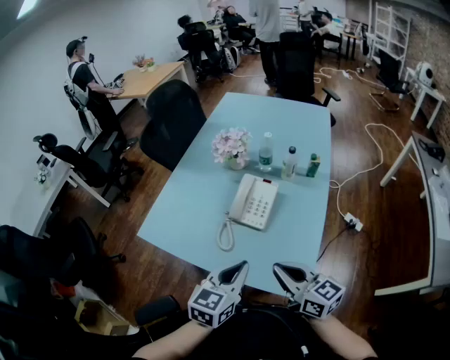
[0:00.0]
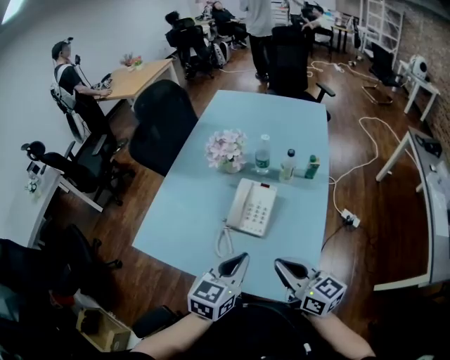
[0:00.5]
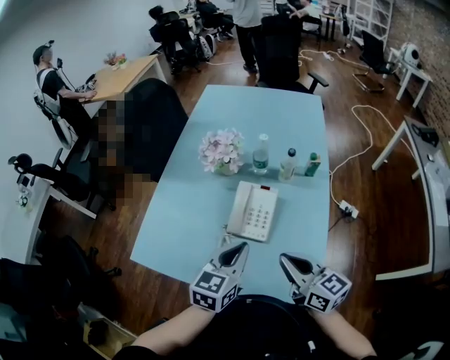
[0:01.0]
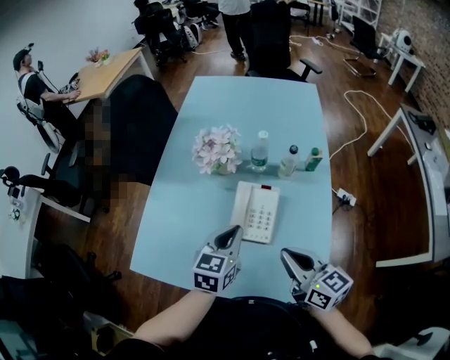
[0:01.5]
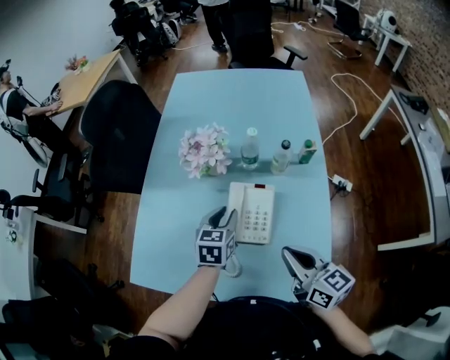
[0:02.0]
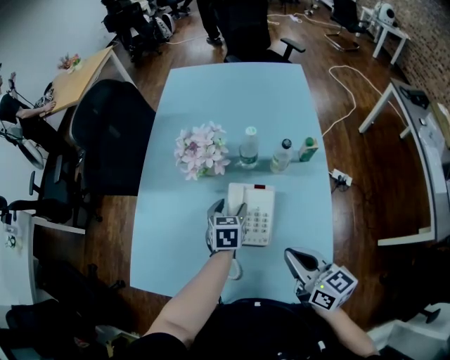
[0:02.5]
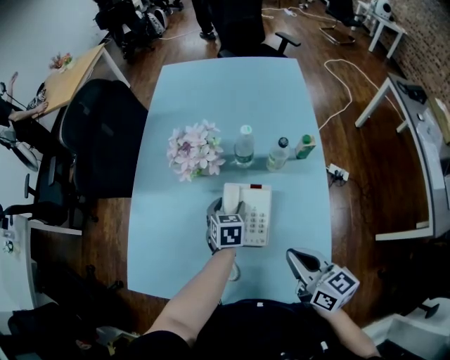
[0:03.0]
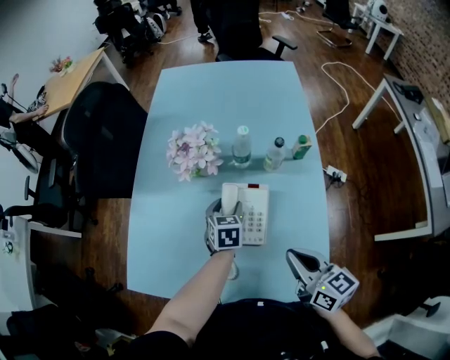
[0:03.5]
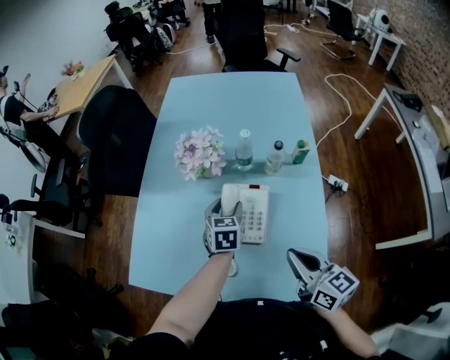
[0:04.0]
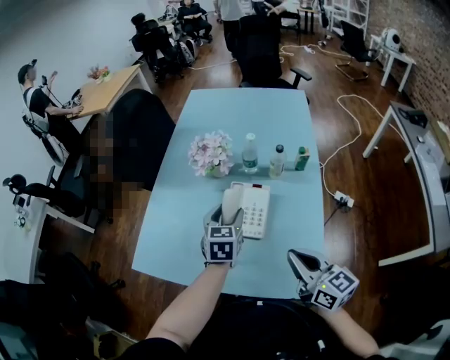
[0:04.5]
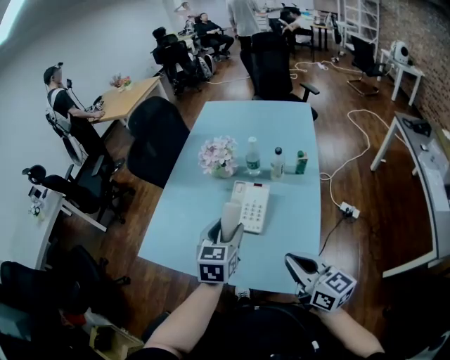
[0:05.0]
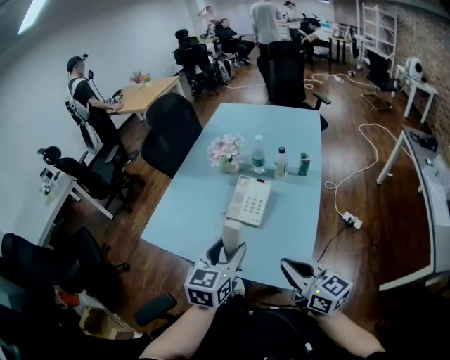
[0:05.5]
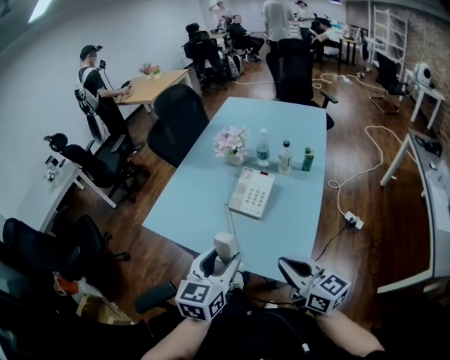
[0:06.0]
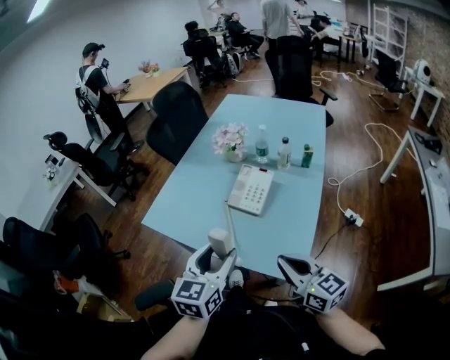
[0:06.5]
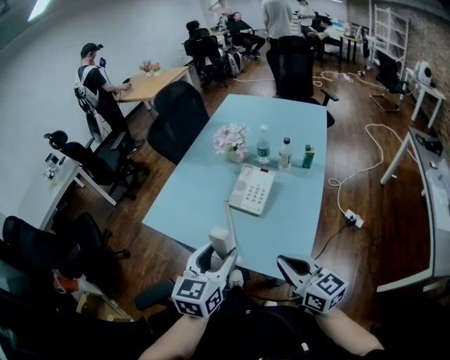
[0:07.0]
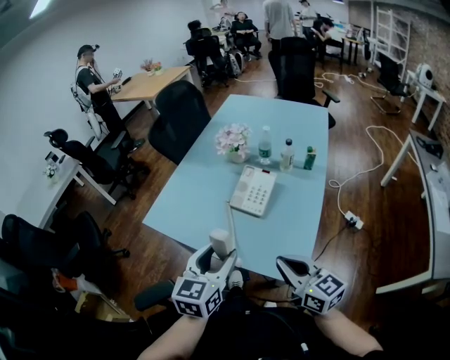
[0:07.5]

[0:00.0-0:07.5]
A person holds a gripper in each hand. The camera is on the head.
0:00.0 to 0:02.0: The left gripper goes roughly 30 cm forward. Meanwhile the right gripper travels forward by about 15 cm, and rotates approximately 20 degrees.
0:02.0 to 0:04.0: The left gripper moves some 10 cm downward and comes back, and opens its fingers.
0:04.0 to 0:05.5: The right gripper heads backward, covering some 15 cm, and rotates about 20 degrees, while the left gripper travels backward and upward by some 35 cm.
0:05.5 to 0:07.5: The left gripper is displaced backward by roughly 5 cm.

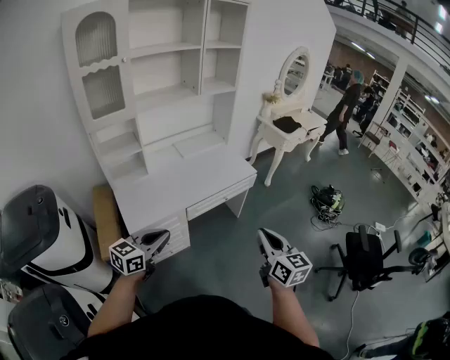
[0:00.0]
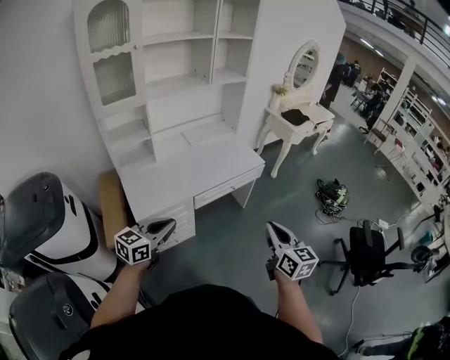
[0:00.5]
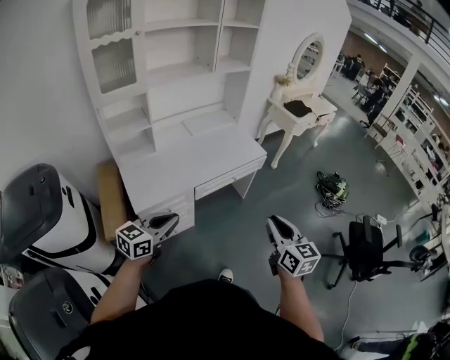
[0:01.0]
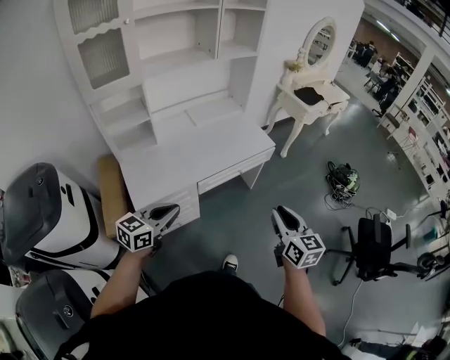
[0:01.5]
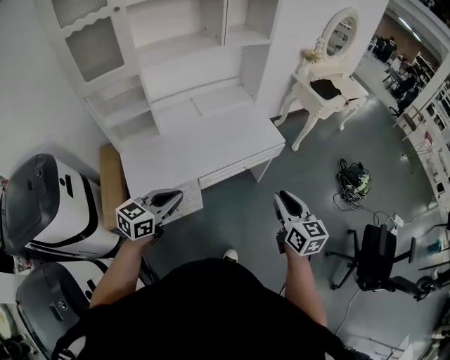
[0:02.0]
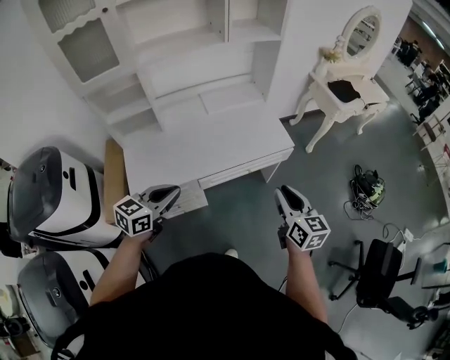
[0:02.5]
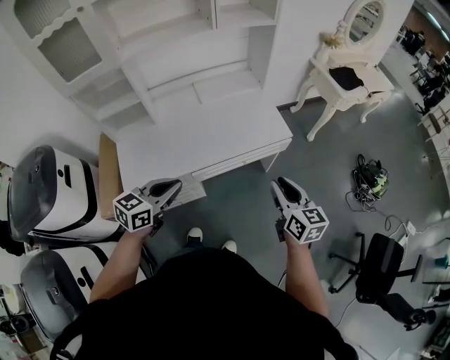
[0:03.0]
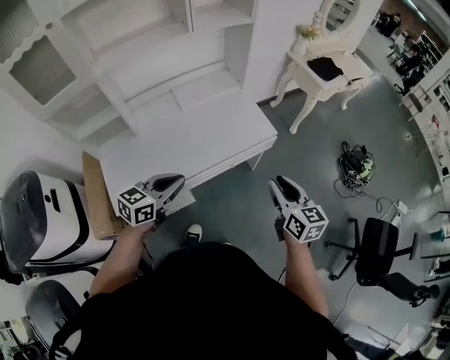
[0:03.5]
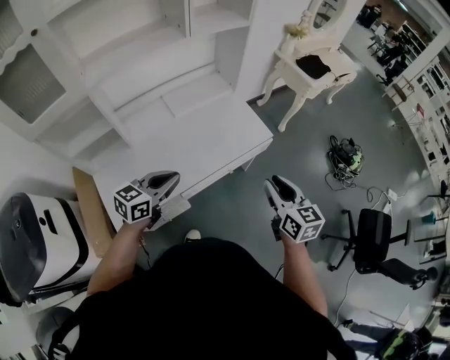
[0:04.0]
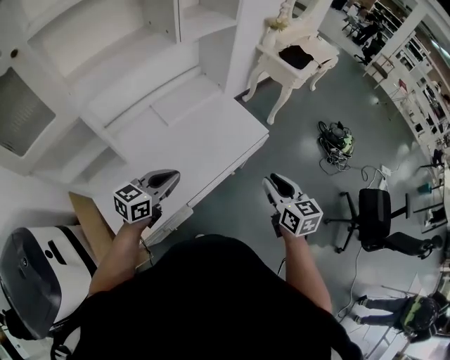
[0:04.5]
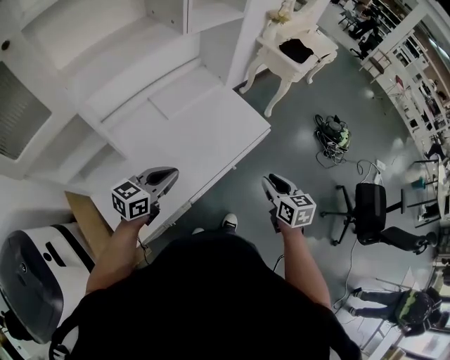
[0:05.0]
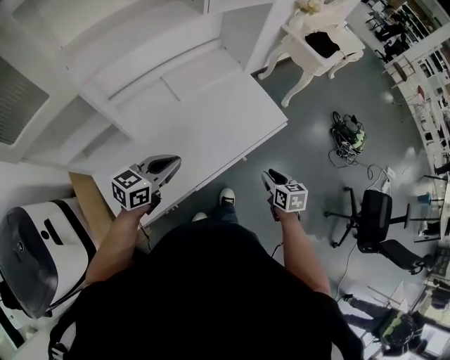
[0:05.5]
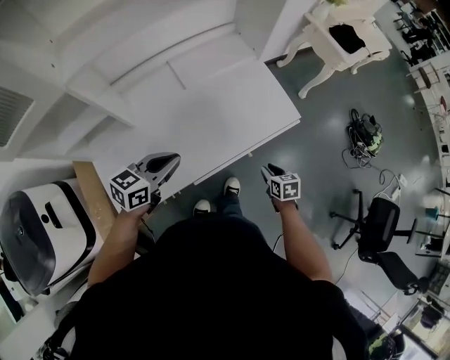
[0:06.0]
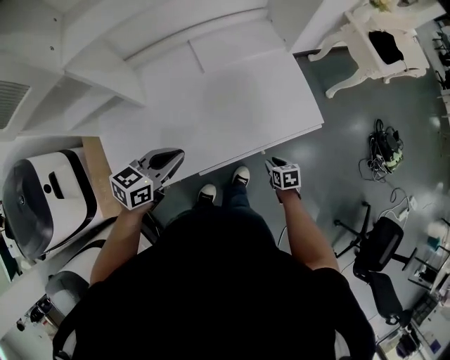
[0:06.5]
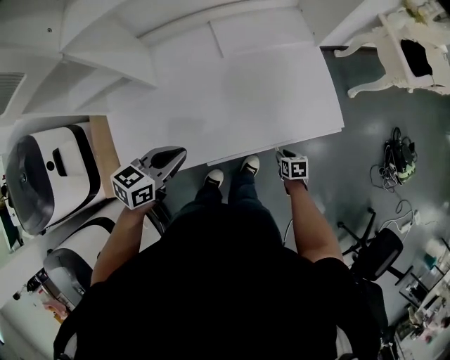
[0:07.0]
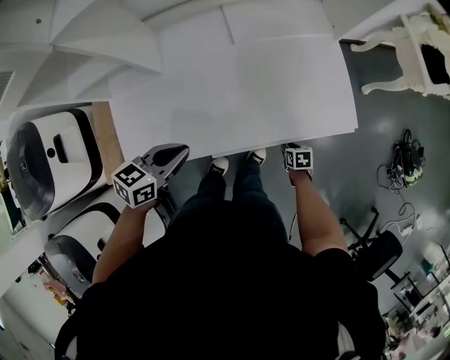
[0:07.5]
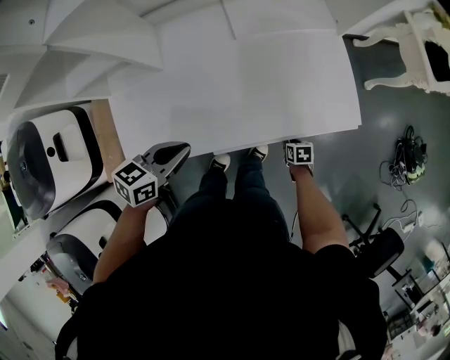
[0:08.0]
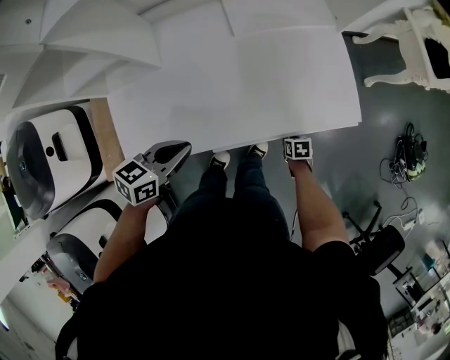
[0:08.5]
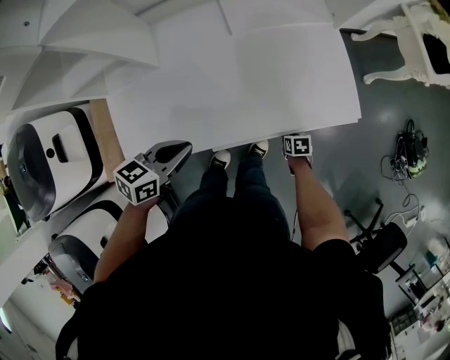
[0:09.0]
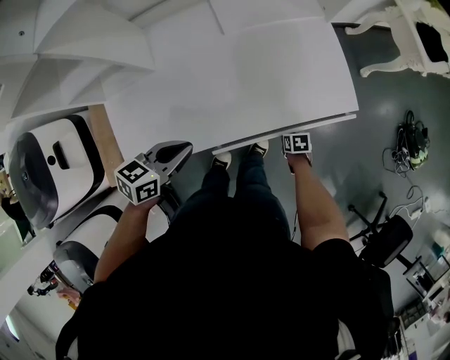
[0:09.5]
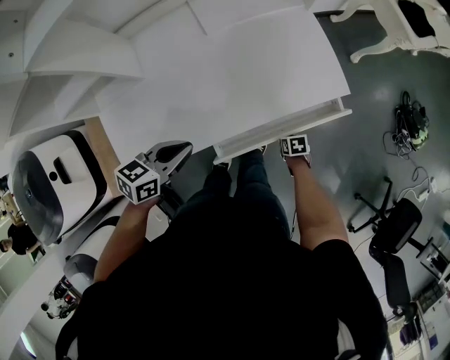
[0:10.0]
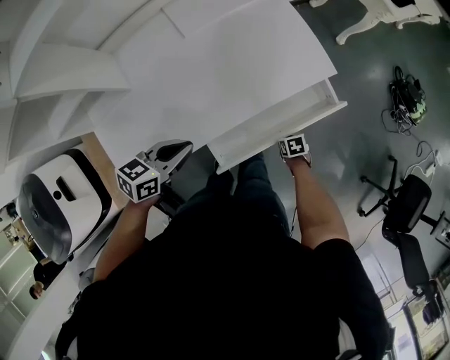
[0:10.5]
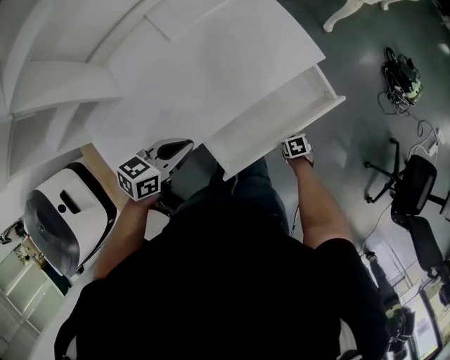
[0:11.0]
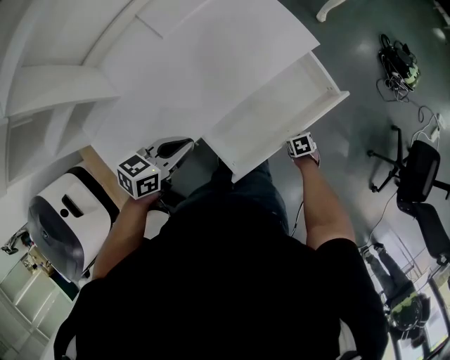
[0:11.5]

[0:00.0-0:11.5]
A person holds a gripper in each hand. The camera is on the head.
0:00.0 to 0:02.0: The two grippers go roughly 15 cm forward.
0:02.0 to 0:04.0: The grippers both shift forward by some 20 cm.
0:04.0 to 0:06.0: The left gripper heads forward, to the left and downward, covering roughly 15 cm, while the right gripper shifts roughly 30 cm downward, and points its fingers roughly 30 degrees further downward.
0:06.0 to 0:07.5: The left gripper moves downward, some 5 cm, and rotates some 20 degrees, while the right gripper heads downward, covering approximately 20 cm, and rotates roughly 20 degrees.
0:07.5 to 0:09.5: The grippers move only a little.
0:09.5 to 0:11.5: The left gripper ends up approximately 10 cm from where it was, and swivels roughly 20 degrees. Meanwhile the right gripper ends up about 20 cm from where it was.

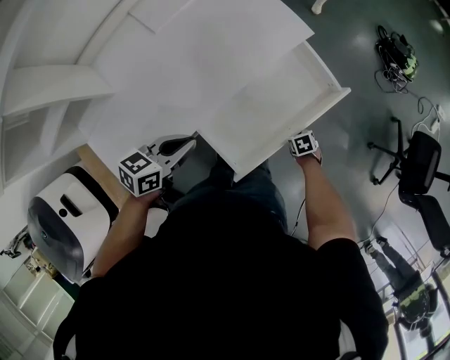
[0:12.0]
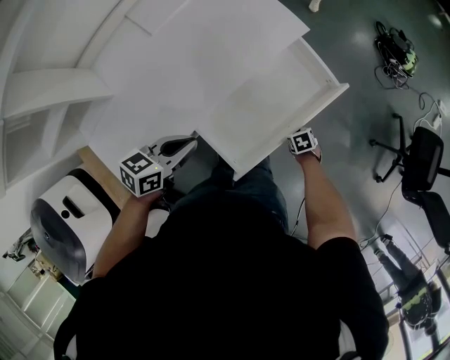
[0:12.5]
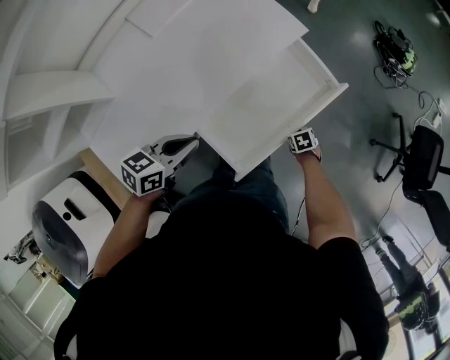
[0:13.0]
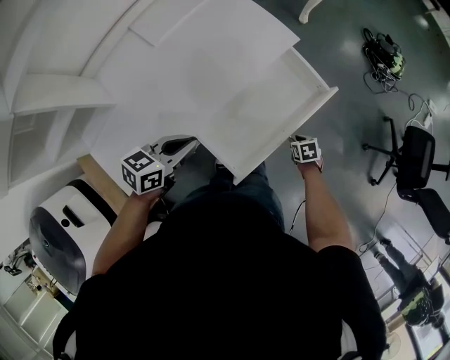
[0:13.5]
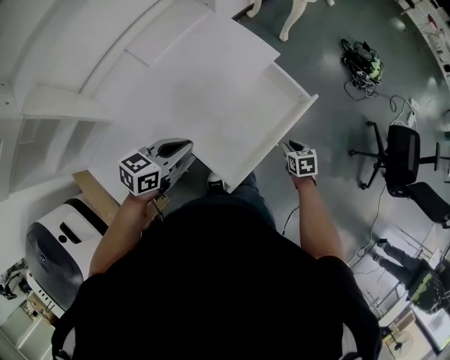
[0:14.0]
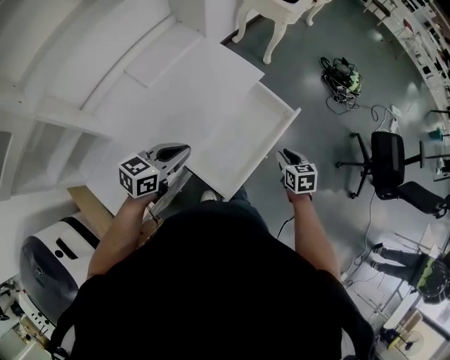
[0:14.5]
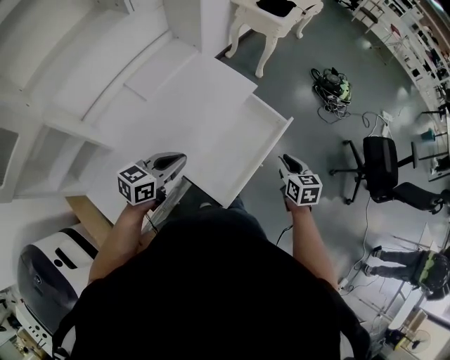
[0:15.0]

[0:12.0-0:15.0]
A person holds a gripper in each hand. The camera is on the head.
0:12.0 to 0:13.5: The right gripper is displaced upward by approximately 5 cm.
0:13.5 to 0:15.0: The right gripper goes roughly 30 cm upward, and tilts its fingers some 30 degrees upward; the left gripper travels upward by some 10 cm.

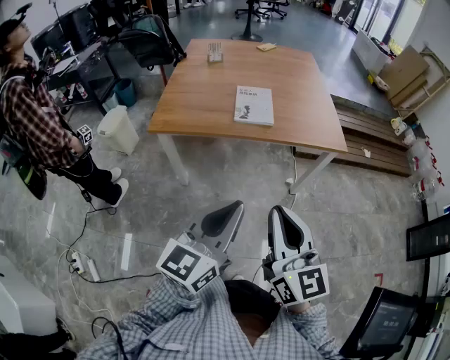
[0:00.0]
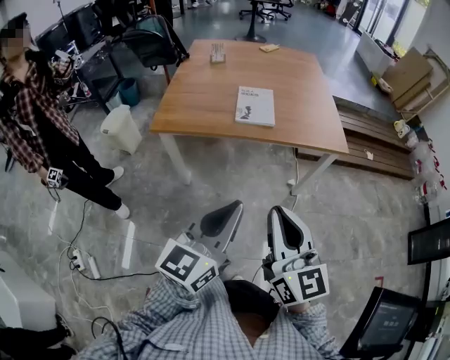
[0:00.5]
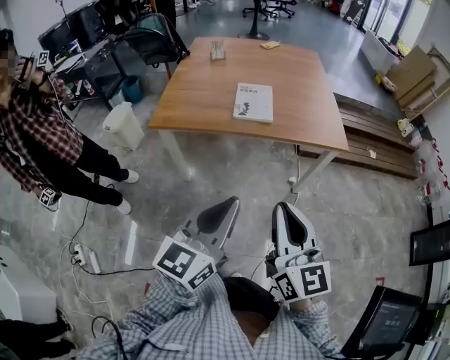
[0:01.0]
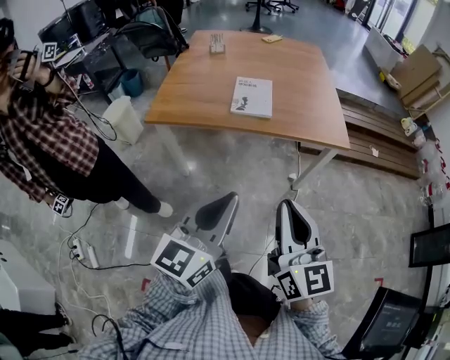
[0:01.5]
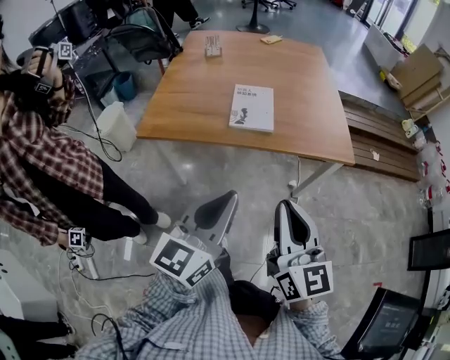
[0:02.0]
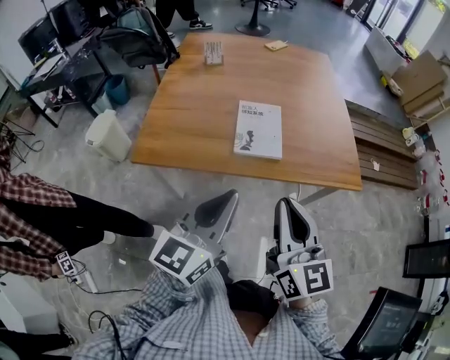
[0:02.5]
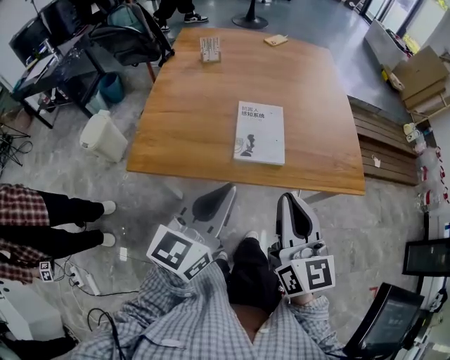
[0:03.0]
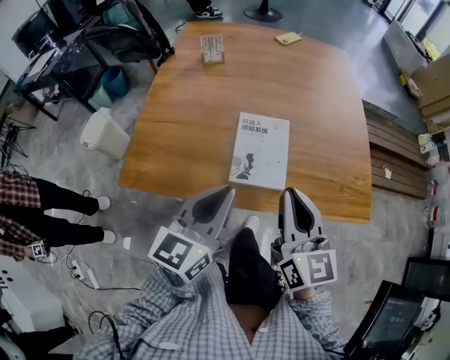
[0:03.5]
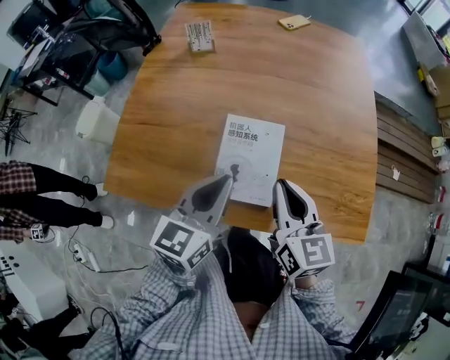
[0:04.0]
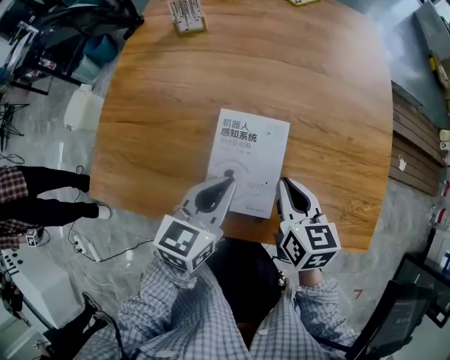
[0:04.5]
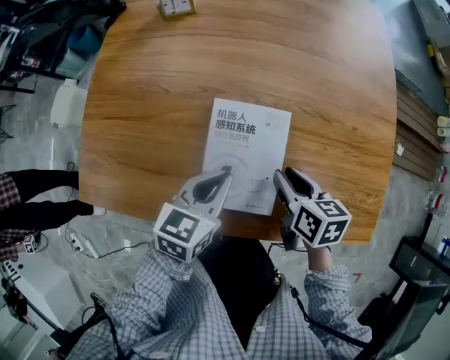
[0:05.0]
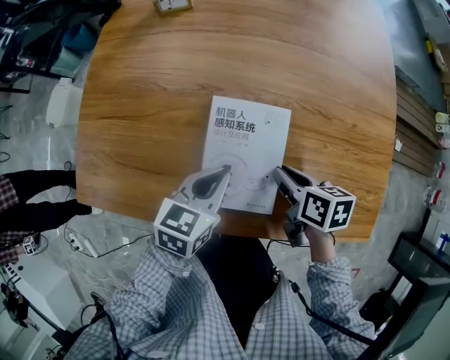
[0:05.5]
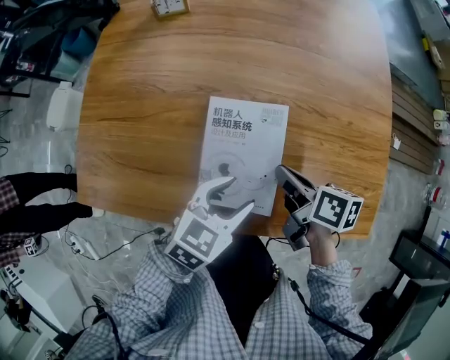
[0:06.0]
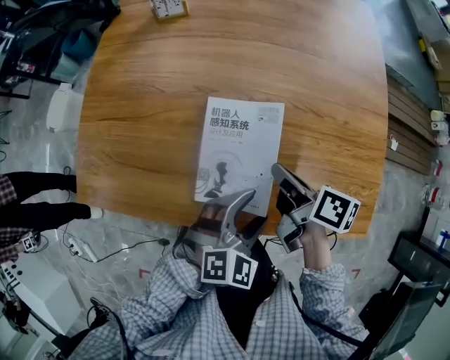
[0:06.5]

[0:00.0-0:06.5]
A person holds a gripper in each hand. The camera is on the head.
0:00.0 to 0:02.0: Both grippers travel together forward, approximately 15 cm.
0:02.0 to 0:04.5: The pair of grippers is taken forward, about 50 cm. The two grippers go about 20 cm downward. The left gripper turns by about 30 degrees. The right gripper angles its fingers downward, by roughly 40 degrees.
0:04.5 to 0:06.5: The right gripper goes downward and returns, about 10 cm each way, and twists roughly 40 degrees clockwise, seen from behind. The left gripper moves to the right, backward and downward, some 15 cm, rotates around the line of its fingers by some 40 degrees, clockwise from behind, and opens.
